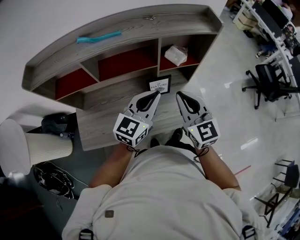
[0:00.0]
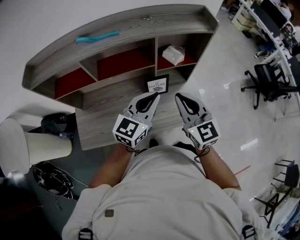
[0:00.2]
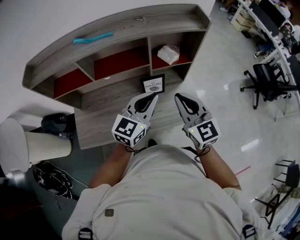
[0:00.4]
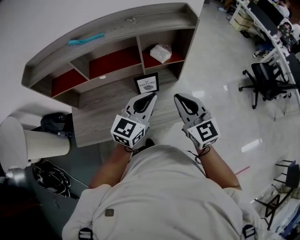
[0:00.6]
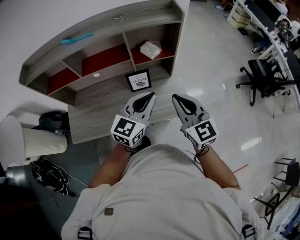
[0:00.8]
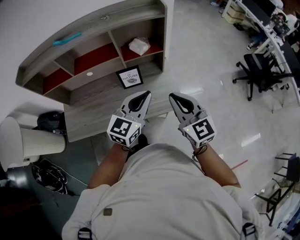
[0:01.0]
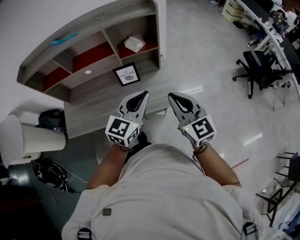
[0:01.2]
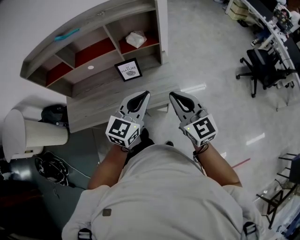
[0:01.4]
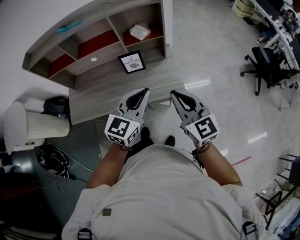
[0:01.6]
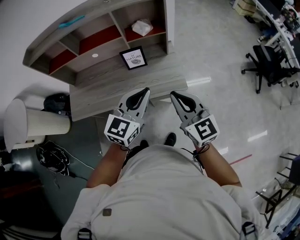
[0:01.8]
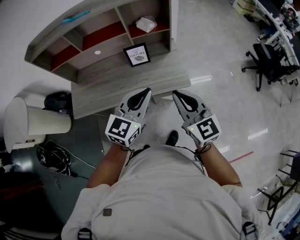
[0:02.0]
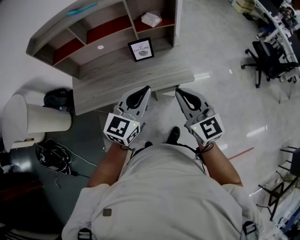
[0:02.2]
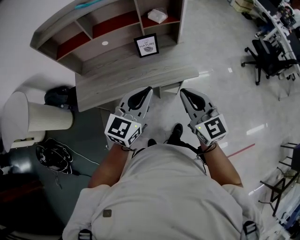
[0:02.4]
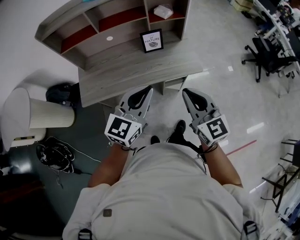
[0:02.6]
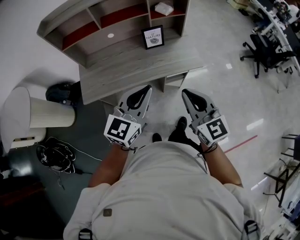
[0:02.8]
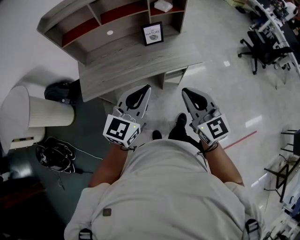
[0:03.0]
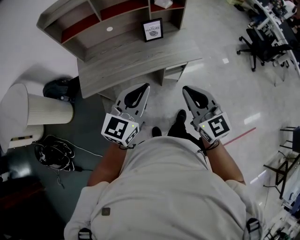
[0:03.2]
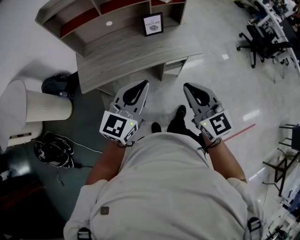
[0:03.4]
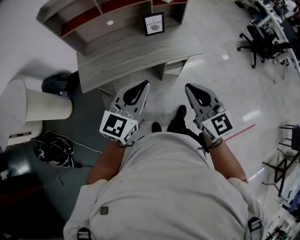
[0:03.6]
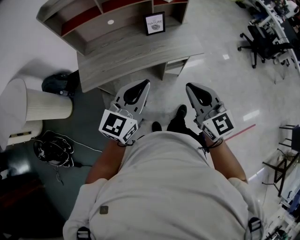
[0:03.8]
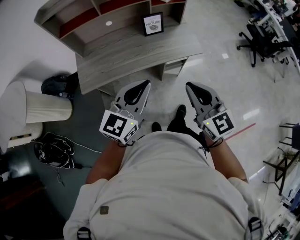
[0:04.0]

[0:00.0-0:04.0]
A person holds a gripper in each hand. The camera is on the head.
0:00.0 to 0:01.4: Both grippers travel together to the right and backward, some 30 cm.
0:01.4 to 0:02.6: The right gripper travels backward and to the left by approximately 25 cm; the left gripper moves to the left and backward, some 25 cm.
0:02.6 to 0:04.0: Both grippers travel together backward and to the left, approximately 10 cm.

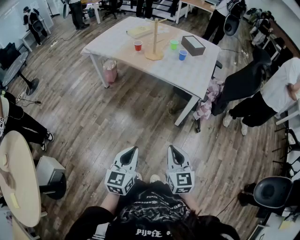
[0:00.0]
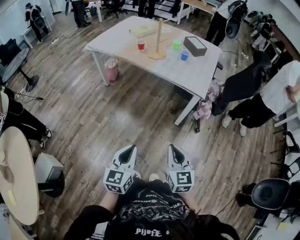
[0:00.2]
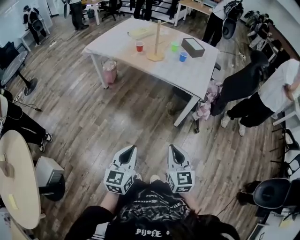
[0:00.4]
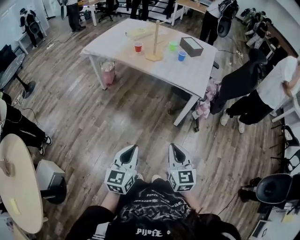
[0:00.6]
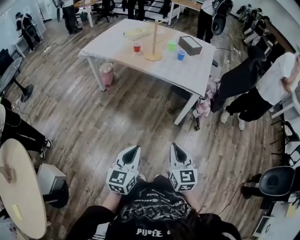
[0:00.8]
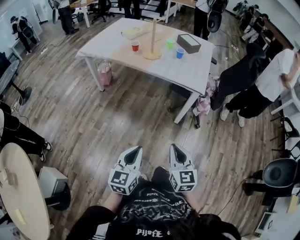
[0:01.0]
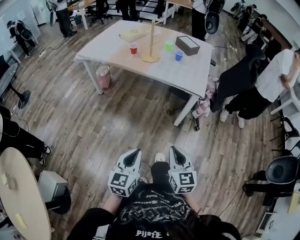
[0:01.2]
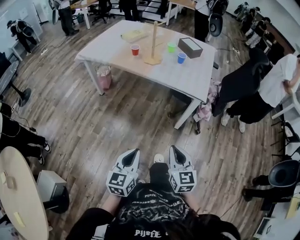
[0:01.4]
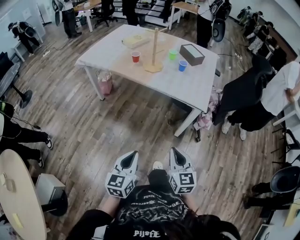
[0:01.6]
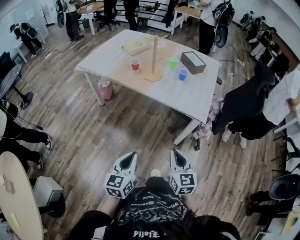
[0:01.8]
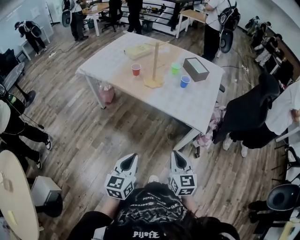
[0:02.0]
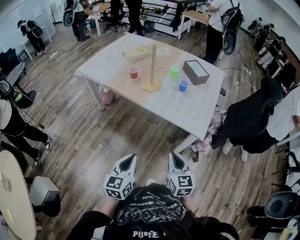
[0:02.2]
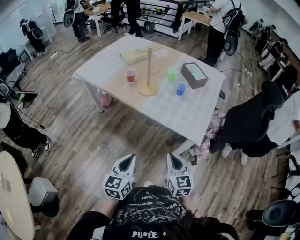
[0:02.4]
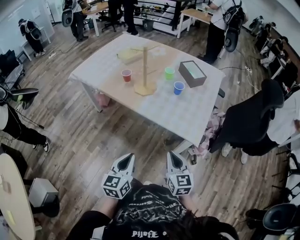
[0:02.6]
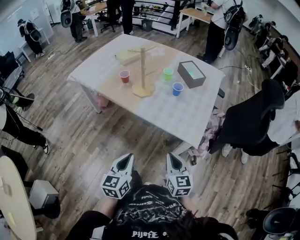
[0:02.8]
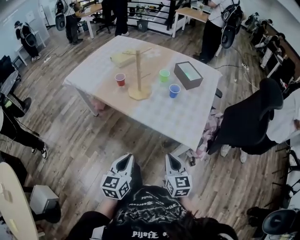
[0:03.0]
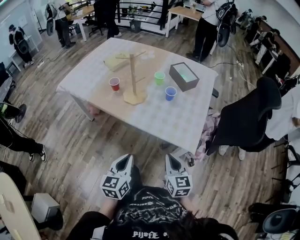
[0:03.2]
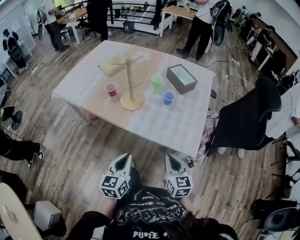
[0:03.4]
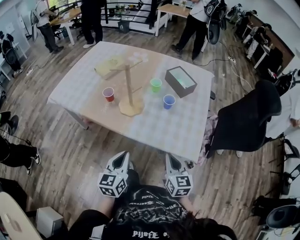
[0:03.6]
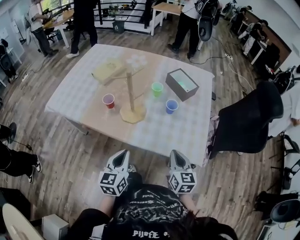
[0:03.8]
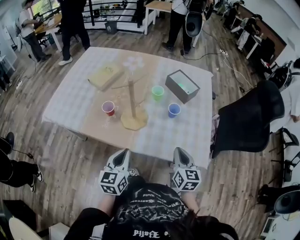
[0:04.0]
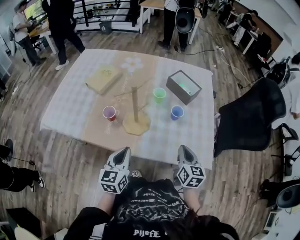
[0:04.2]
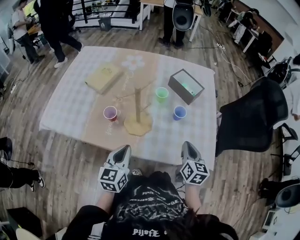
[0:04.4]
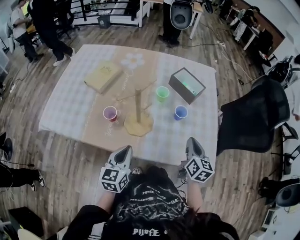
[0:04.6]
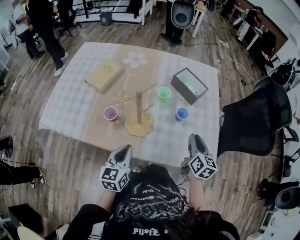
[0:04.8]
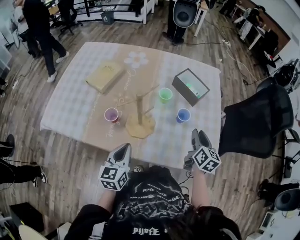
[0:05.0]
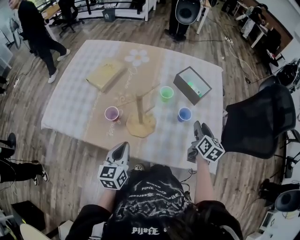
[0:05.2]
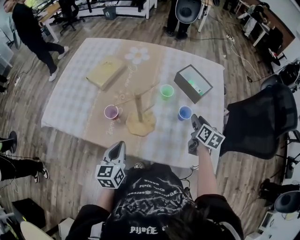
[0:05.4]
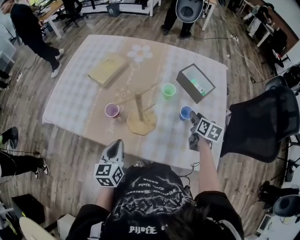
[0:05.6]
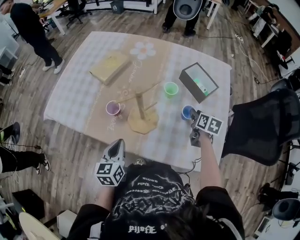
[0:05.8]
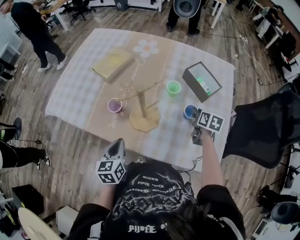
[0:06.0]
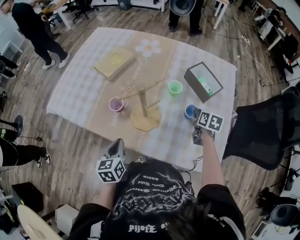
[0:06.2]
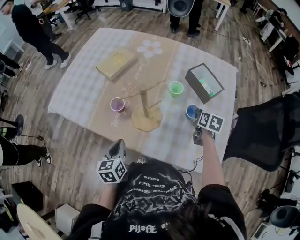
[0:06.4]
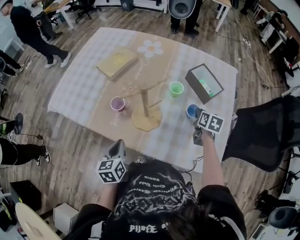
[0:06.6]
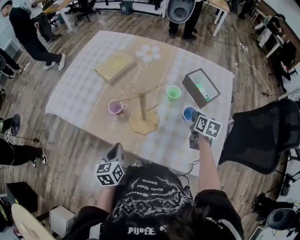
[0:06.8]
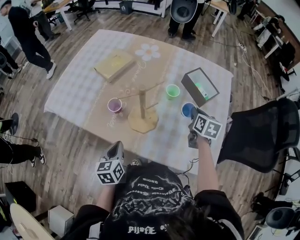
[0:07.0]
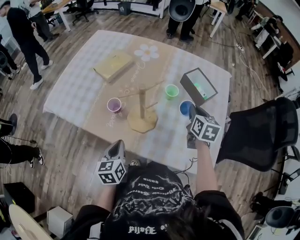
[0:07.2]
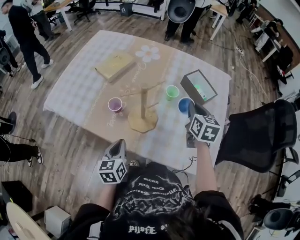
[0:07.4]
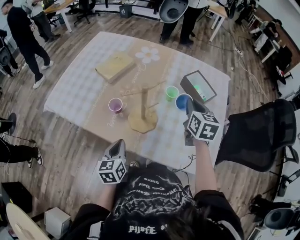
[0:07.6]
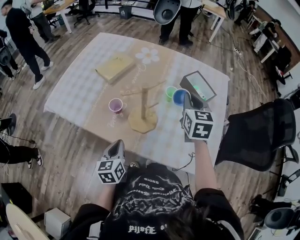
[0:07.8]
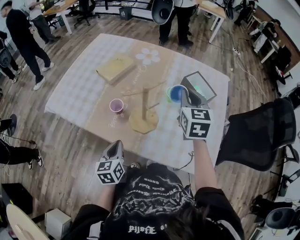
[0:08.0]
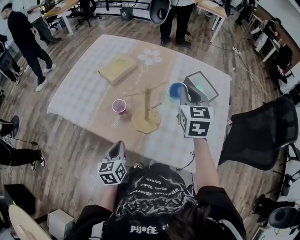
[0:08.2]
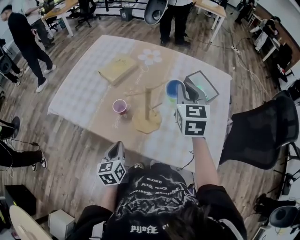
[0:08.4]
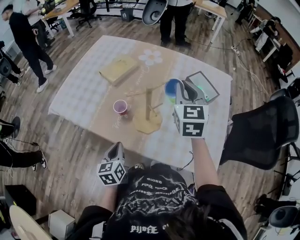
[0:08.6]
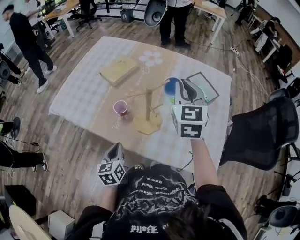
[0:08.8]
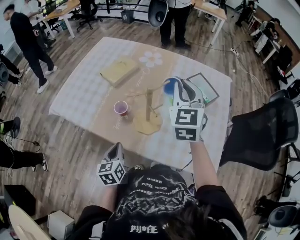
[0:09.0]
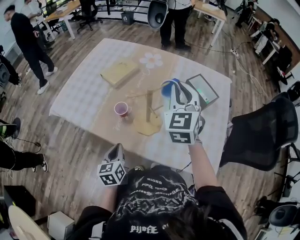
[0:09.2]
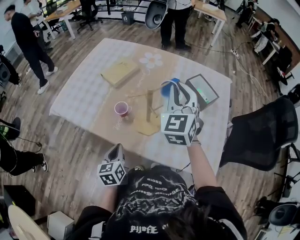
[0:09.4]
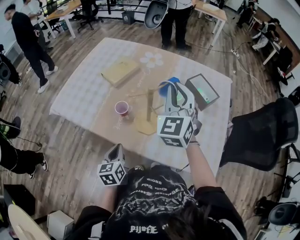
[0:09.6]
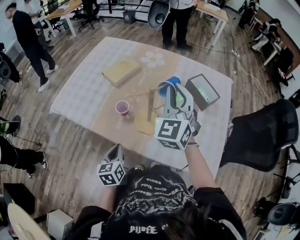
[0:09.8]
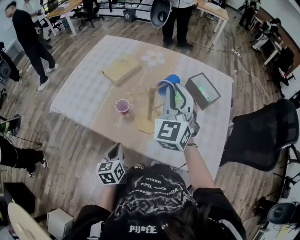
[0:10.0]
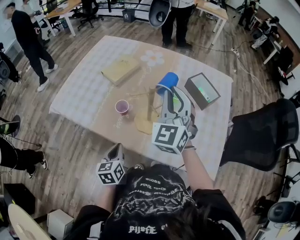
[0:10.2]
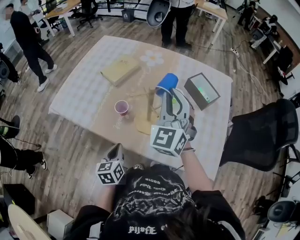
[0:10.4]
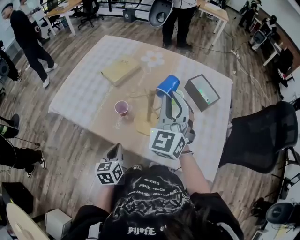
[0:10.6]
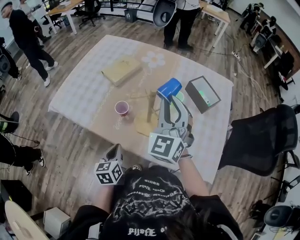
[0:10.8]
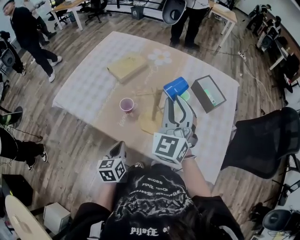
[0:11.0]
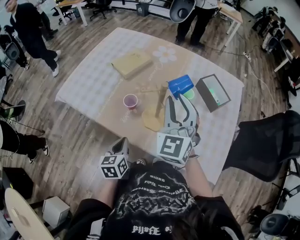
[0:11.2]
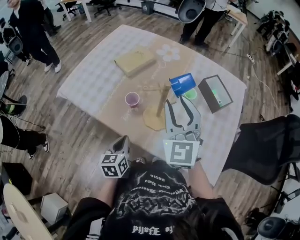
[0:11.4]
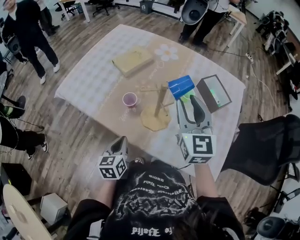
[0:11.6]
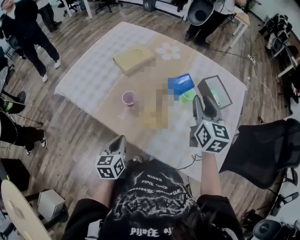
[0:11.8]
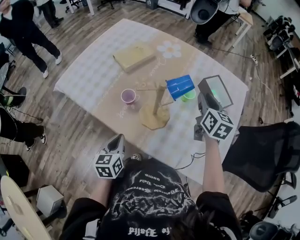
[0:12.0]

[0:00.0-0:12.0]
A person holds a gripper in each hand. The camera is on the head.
0:00.0 to 0:01.6: Both grippers move forward and to the left, roughly 10 cm.
0:01.6 to 0:03.0: The two grippers go about 30 cm forward and to the right.
0:03.0 to 0:04.4: The right gripper is displaced forward by approximately 30 cm, and turns by some 40 degrees. Meanwhile the left gripper shifts approximately 40 cm forward and to the left.
0:04.4 to 0:06.0: The right gripper shifts approximately 25 cm forward, turns by roughly 20 degrees, and opens up; the left gripper moves downward, about 5 cm, and changes its angle by roughly 20 degrees.
0:06.0 to 0:07.6: The right gripper is displaced upward and to the left by about 20 cm, turns by about 30 degrees, and closes up.
0:07.6 to 0:09.0: The right gripper goes approximately 15 cm upward and to the left, and swivels some 30 degrees.
0:09.0 to 0:10.4: The right gripper ends up about 5 cm from where it was.
0:10.4 to 0:12.0: The right gripper is displaced to the right, downward and forward by about 20 cm, rolls clockwise, seen from behind, by some 50 degrees, and opens its fingers.

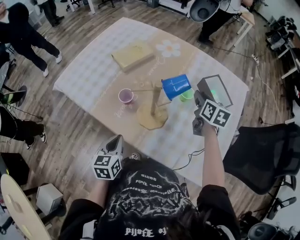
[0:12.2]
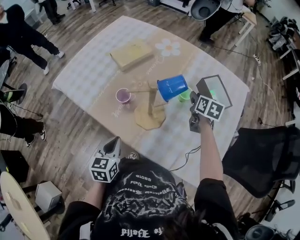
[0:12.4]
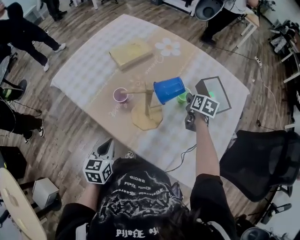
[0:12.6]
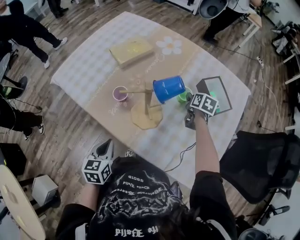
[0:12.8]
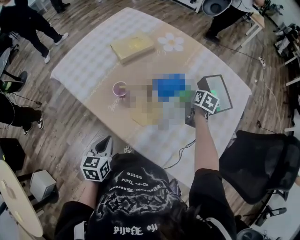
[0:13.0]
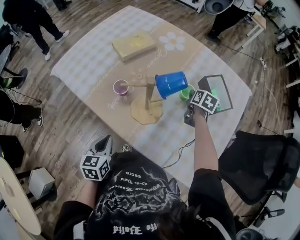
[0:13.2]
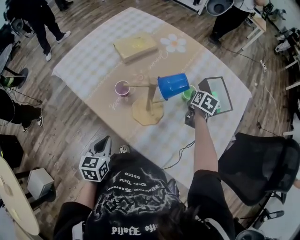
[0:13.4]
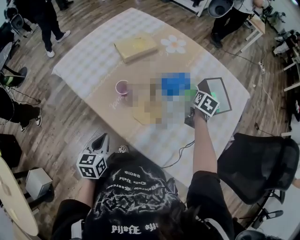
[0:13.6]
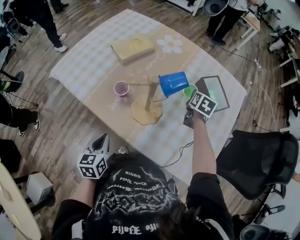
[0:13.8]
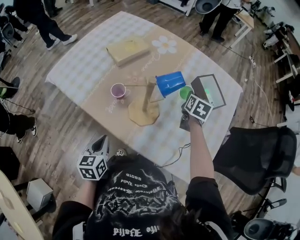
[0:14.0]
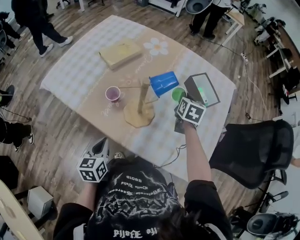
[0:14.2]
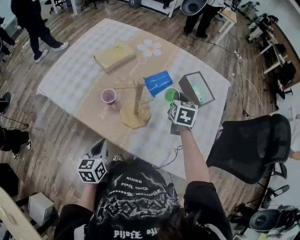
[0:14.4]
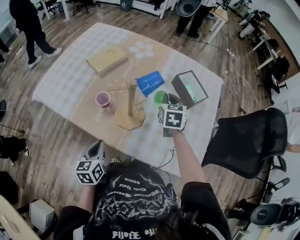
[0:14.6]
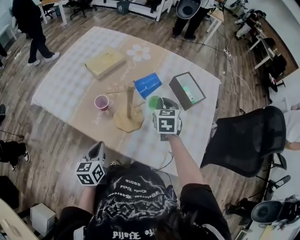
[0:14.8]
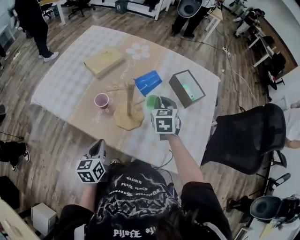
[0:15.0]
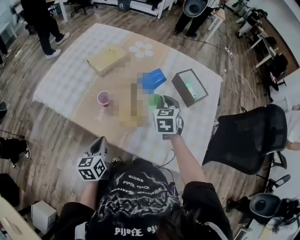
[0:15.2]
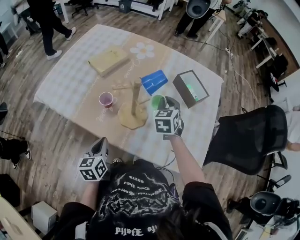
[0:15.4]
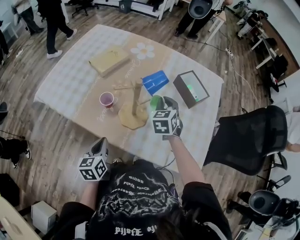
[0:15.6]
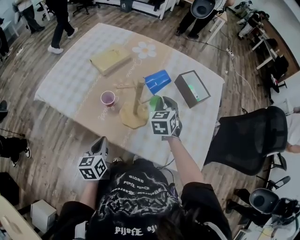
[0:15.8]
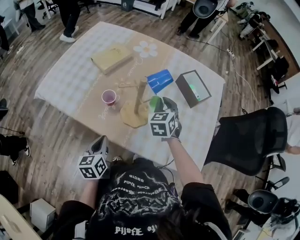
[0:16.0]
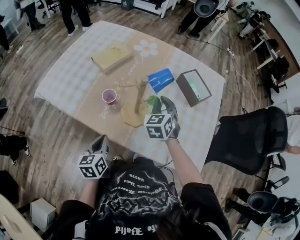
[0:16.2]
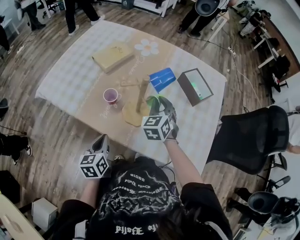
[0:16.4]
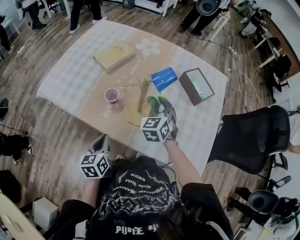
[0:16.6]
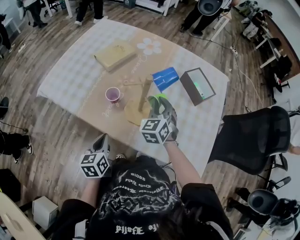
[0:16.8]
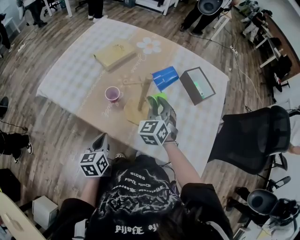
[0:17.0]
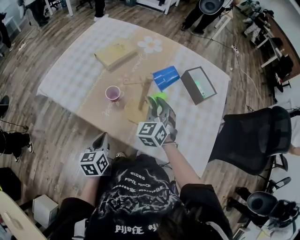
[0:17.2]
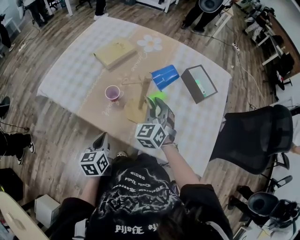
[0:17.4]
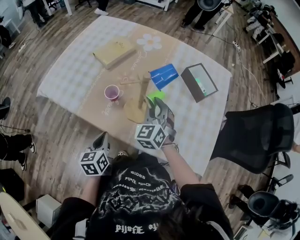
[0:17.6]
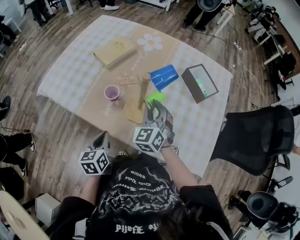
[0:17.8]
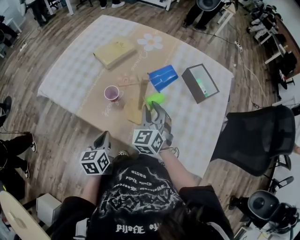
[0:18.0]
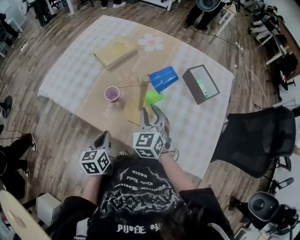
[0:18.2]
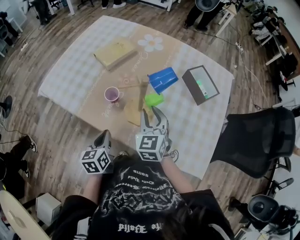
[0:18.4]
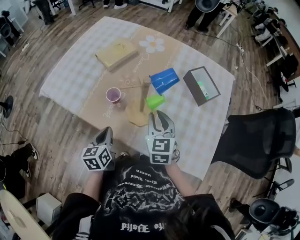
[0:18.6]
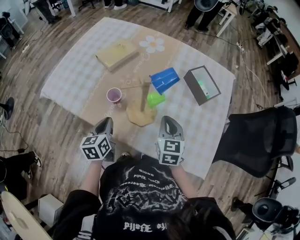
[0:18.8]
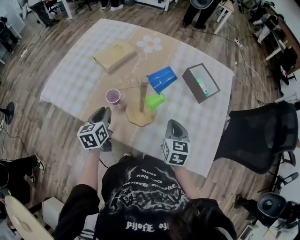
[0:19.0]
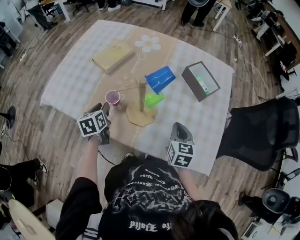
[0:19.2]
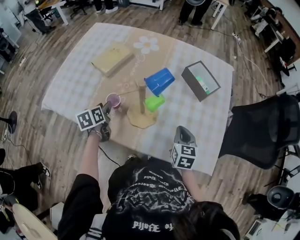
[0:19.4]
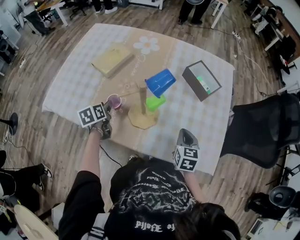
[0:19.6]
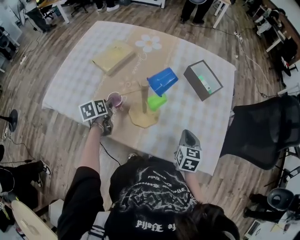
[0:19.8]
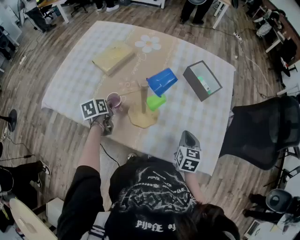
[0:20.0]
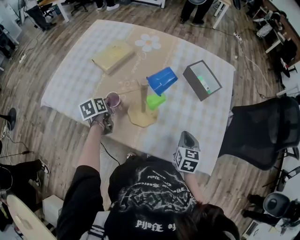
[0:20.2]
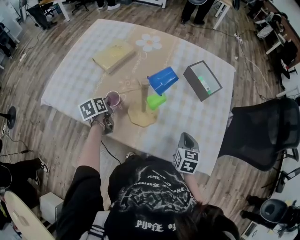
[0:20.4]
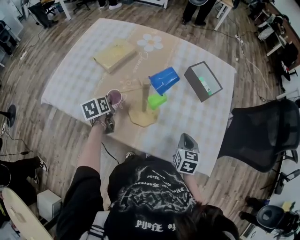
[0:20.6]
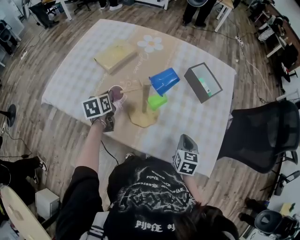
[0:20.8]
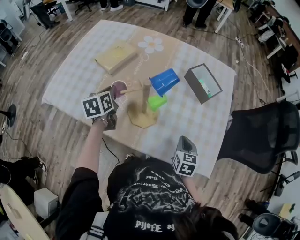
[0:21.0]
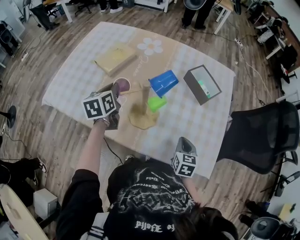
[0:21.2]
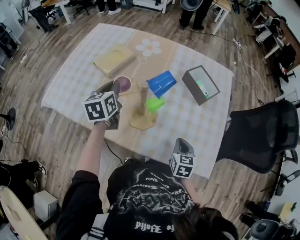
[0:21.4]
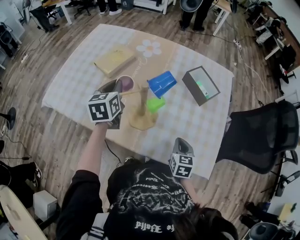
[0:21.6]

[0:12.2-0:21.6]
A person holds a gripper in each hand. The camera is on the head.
0:12.2 to 0:13.8: The right gripper travels downward by some 5 cm, and closes.
0:13.8 to 0:15.4: The right gripper is displaced backward, to the left and upward by approximately 15 cm, and swivels about 30 degrees.
0:15.4 to 0:17.0: The right gripper heads to the left, covering some 10 cm.
0:17.0 to 0:18.4: The grippers stay close to where they were, moving slightly.
0:18.4 to 0:20.0: The right gripper shifts roughly 20 cm to the right and downward, changes its angle by roughly 30 degrees, and closes its fingers, while the left gripper goes approximately 15 cm forward, and opens.
0:20.0 to 0:21.6: The left gripper heads upward, covering roughly 15 cm, and changes its angle by about 30 degrees.
